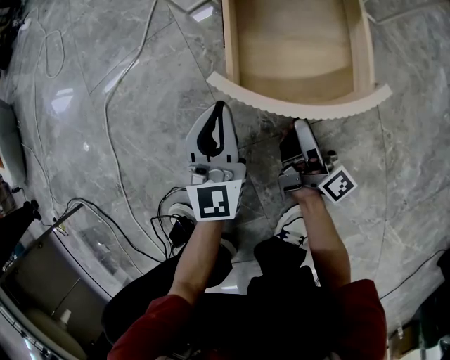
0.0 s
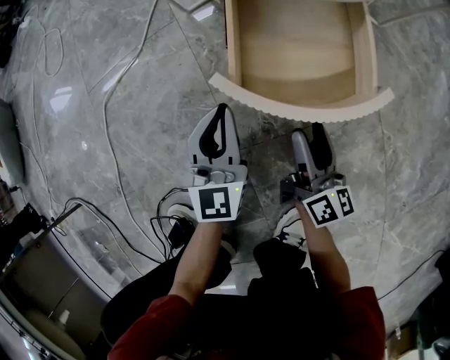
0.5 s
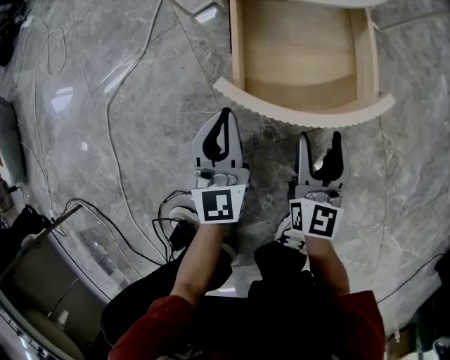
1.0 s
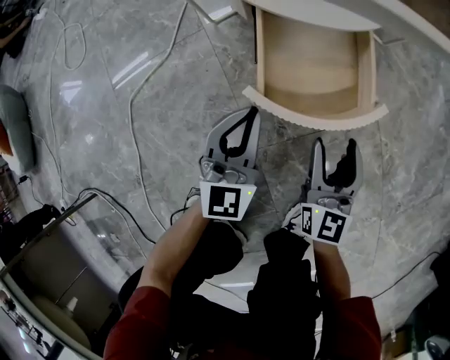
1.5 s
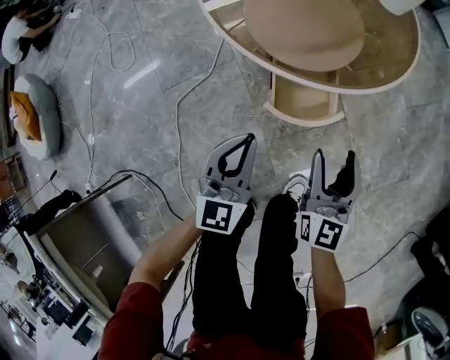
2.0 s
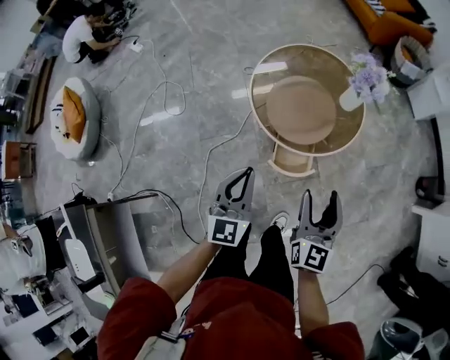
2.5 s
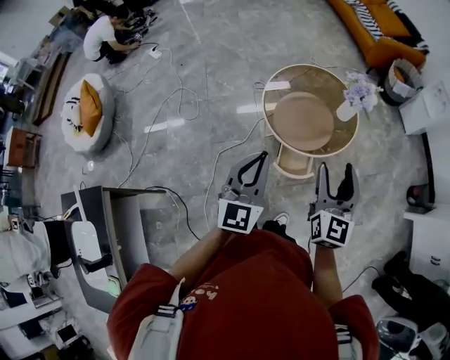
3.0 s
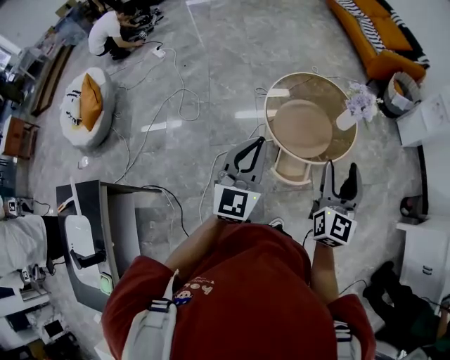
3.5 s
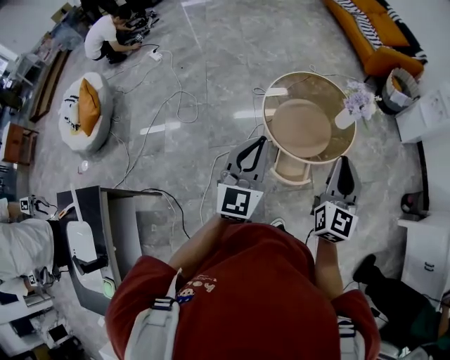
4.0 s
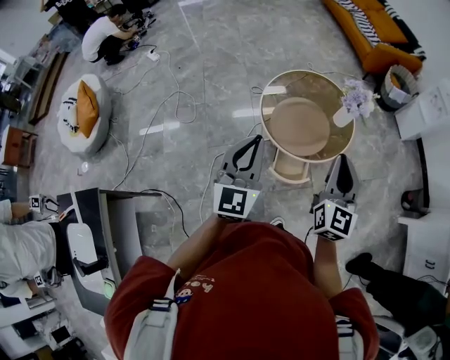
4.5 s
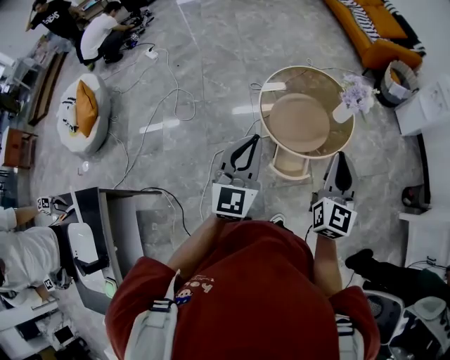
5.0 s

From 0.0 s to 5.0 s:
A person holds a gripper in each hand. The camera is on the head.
From 0.0 s to 2.5 s: The two grippers go roughly 70 cm upward. The right gripper twists about 70 degrees counterclockwise, seen from behind.
From 2.5 s to 5.0 s: The grippers both shift upward by approximately 20 cm. The right gripper closes its fingers.

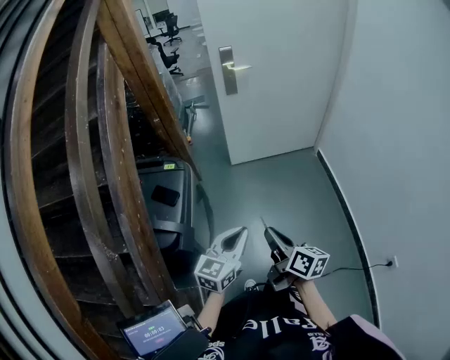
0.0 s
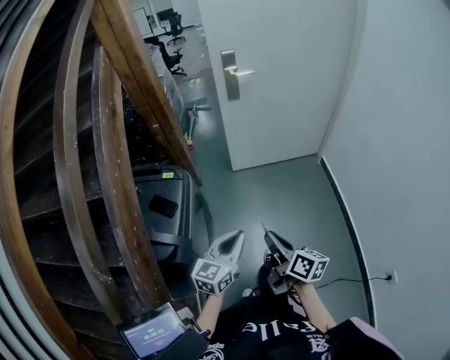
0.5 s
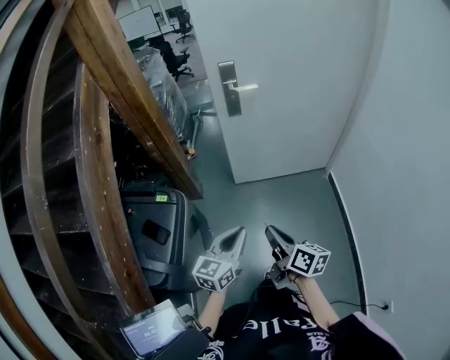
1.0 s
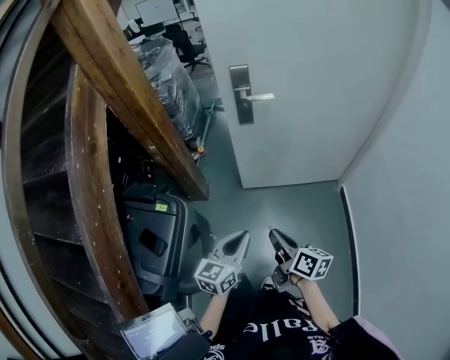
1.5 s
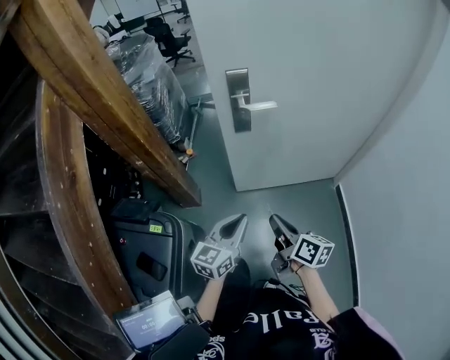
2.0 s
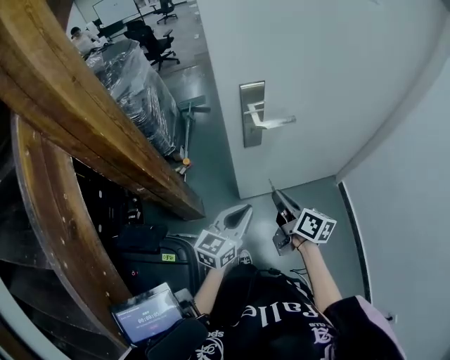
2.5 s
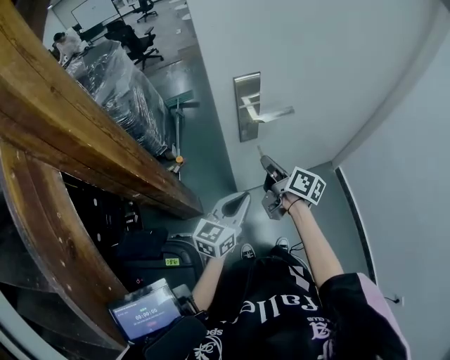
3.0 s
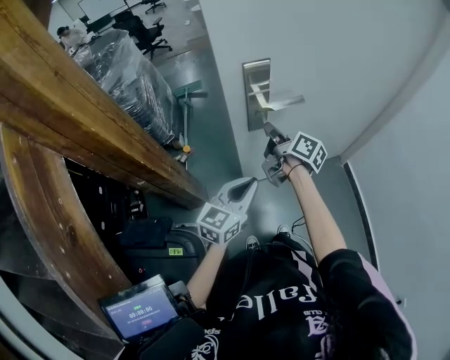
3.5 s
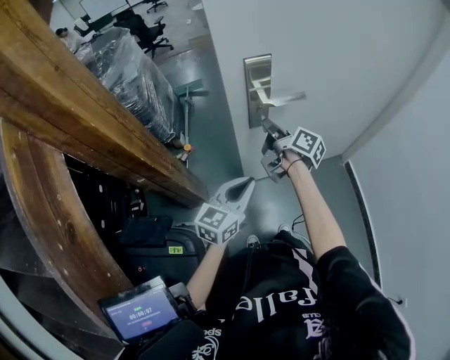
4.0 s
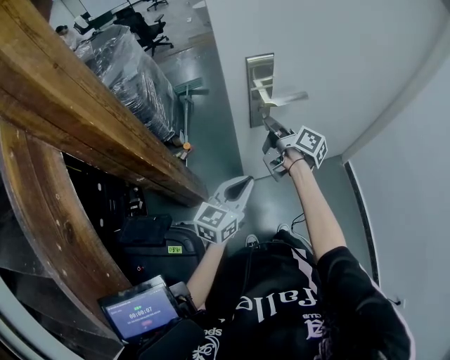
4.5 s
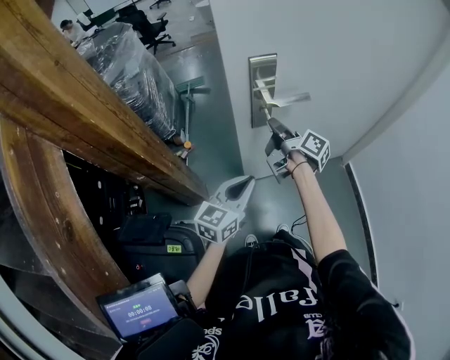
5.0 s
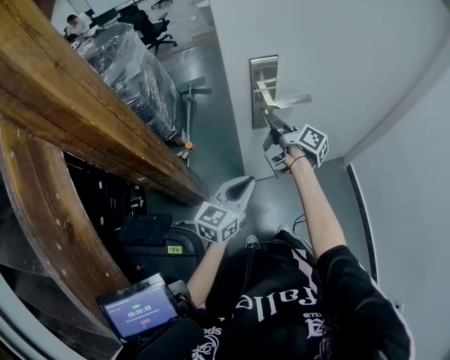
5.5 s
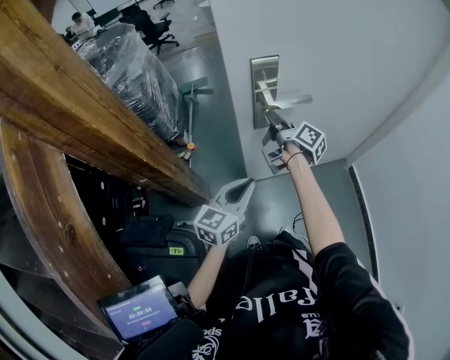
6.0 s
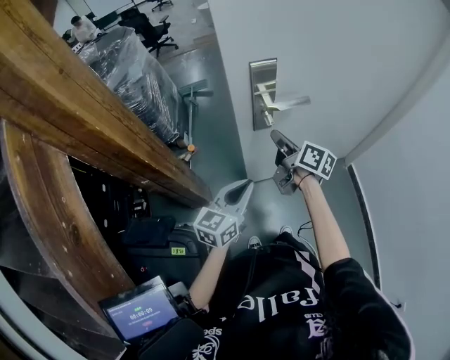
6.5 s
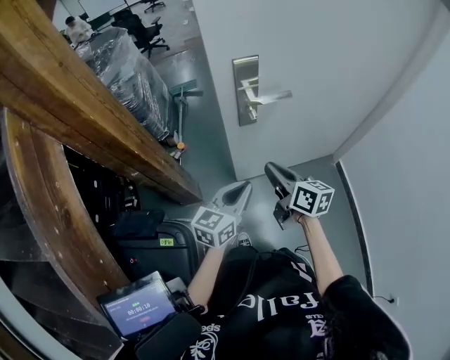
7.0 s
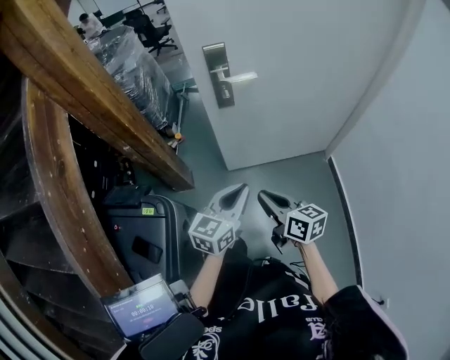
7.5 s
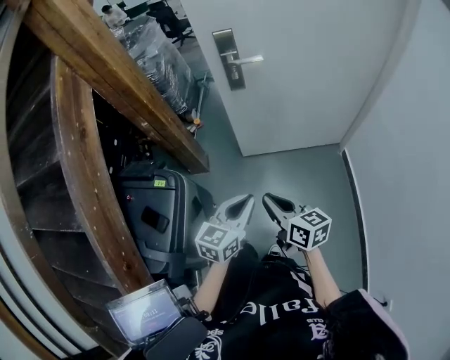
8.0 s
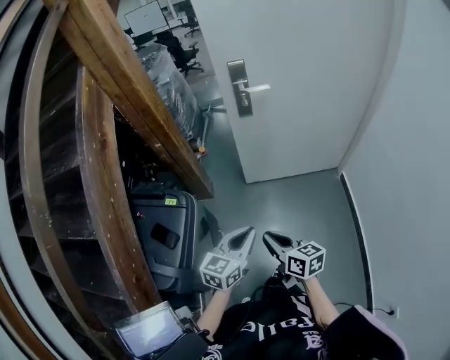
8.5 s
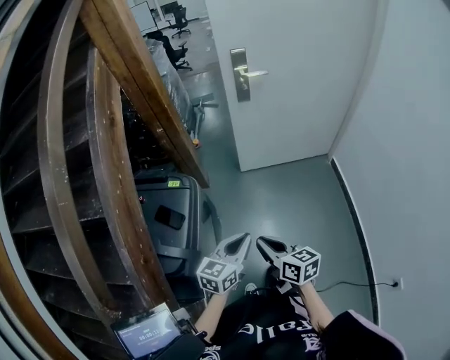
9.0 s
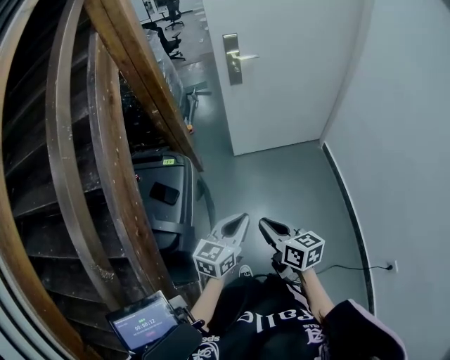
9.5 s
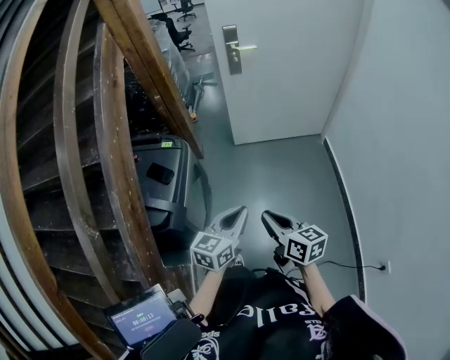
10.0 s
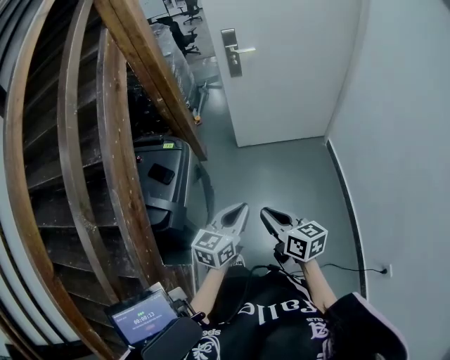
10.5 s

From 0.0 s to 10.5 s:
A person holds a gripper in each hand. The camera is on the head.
From 0.0 s to 2.0 s: Both grippers are carried forward, some 50 cm.
From 2.0 s to 4.0 s: The right gripper is displaced forward and to the left by roughly 35 cm, and changes its angle by some 20 degrees; the left gripper is displaced forward and to the left by approximately 20 cm.
From 4.0 s to 6.5 s: The grippers make only small movements.
From 6.5 s to 8.5 s: The two grippers travel together, backward, some 50 cm. The right gripper changes its angle by approximately 30 degrees.
From 8.5 s to 10.5 s: The grippers both shift backward by some 25 cm.

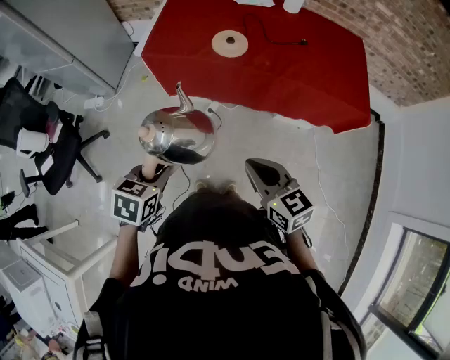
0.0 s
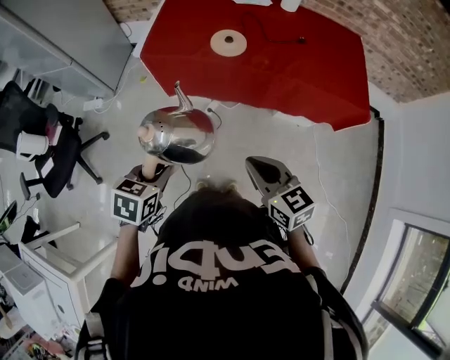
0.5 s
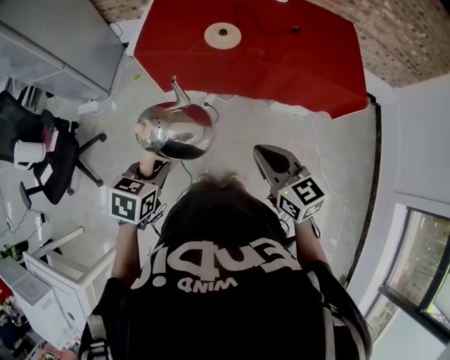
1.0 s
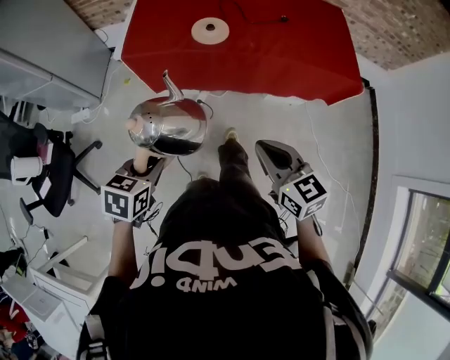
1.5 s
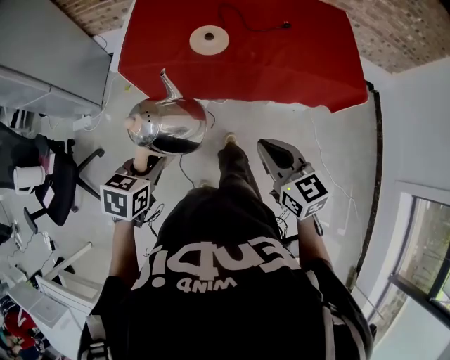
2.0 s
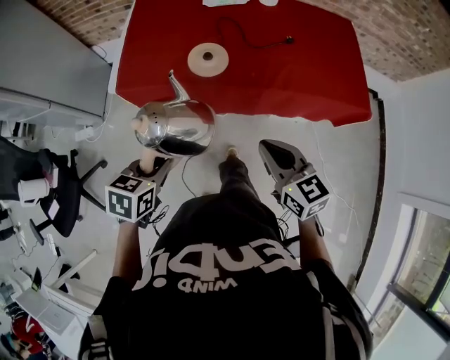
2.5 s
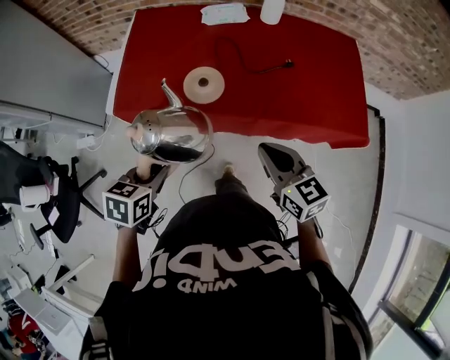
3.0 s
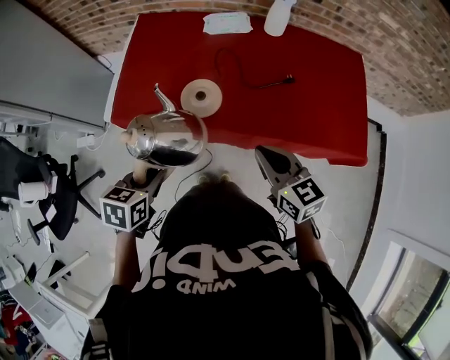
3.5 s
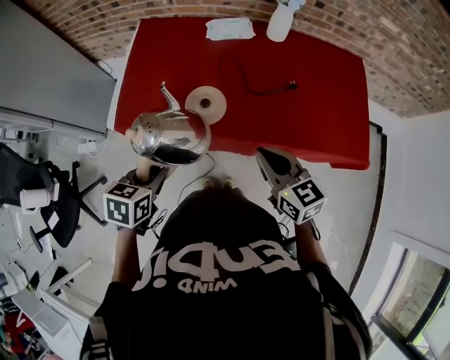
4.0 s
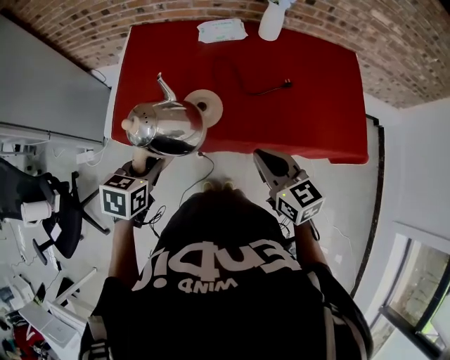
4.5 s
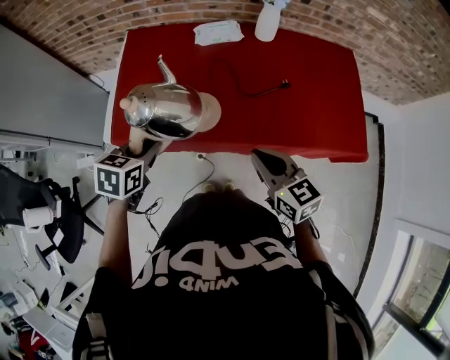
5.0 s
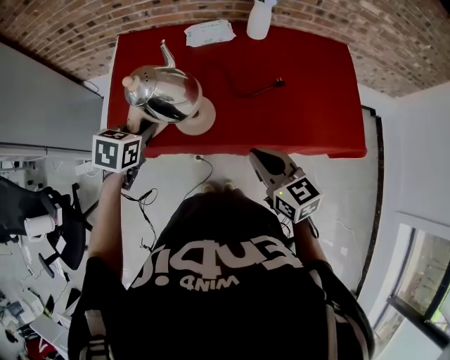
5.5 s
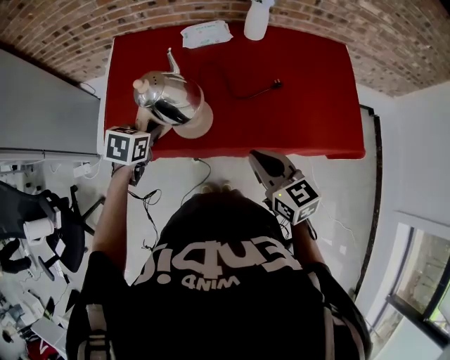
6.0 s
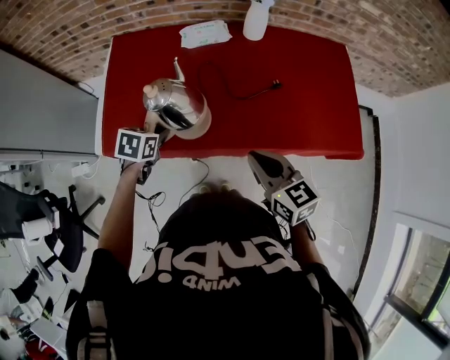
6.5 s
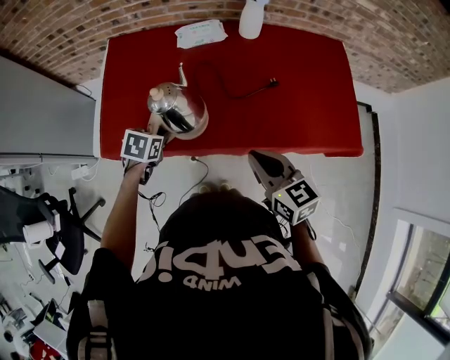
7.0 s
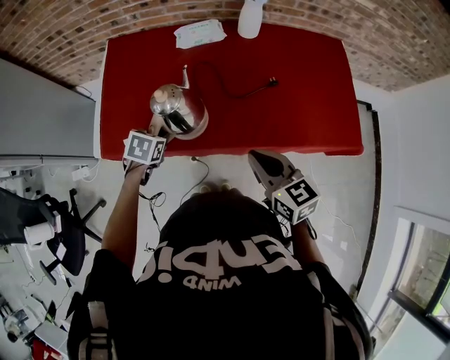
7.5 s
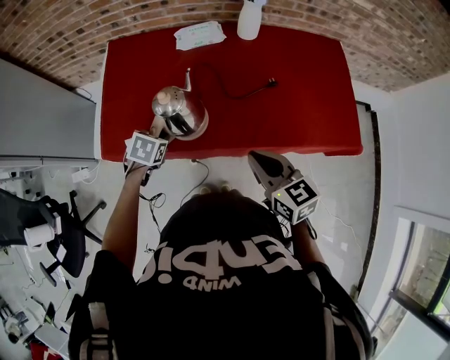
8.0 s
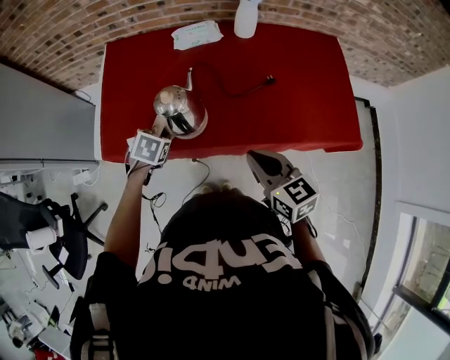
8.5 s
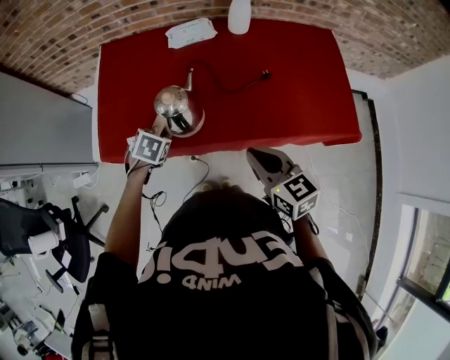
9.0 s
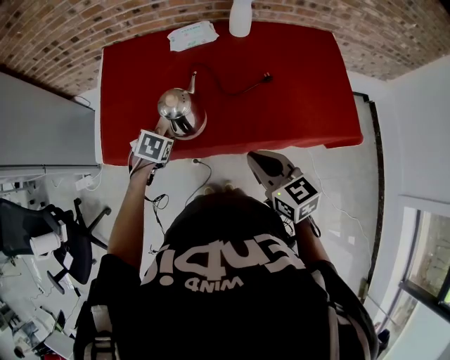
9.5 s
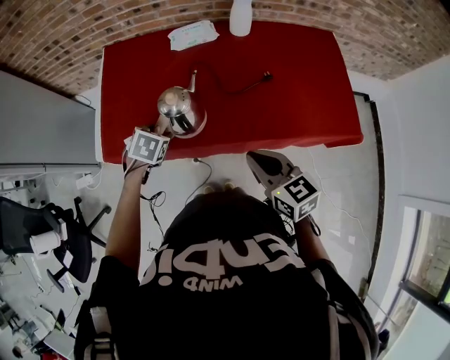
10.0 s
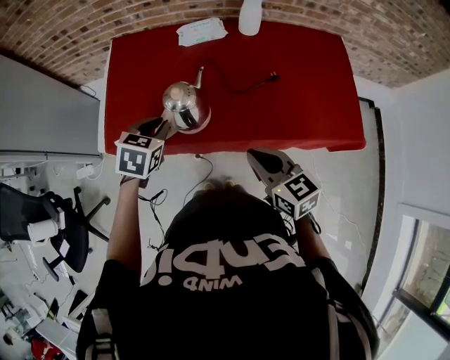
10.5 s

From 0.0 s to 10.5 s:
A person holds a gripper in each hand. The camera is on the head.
From 0.0 s to 2.0 s: The two grippers go about 10 cm forward.
From 2.0 s to 4.0 s: Both grippers move forward, some 25 cm.
From 4.0 s to 6.5 s: The left gripper is displaced forward and downward by approximately 20 cm.
From 6.5 s to 8.5 s: There are only small adjustments of the grippers.
From 8.5 s to 10.5 s: The left gripper travels upward by some 10 cm, and opens and closes again.

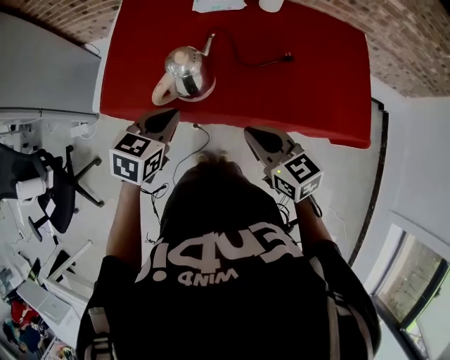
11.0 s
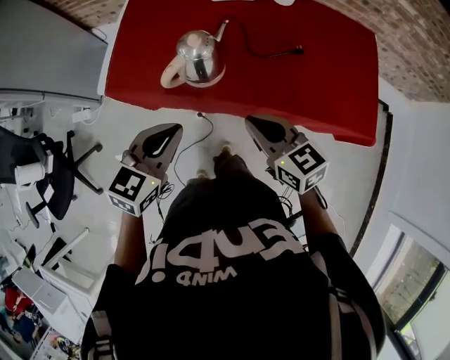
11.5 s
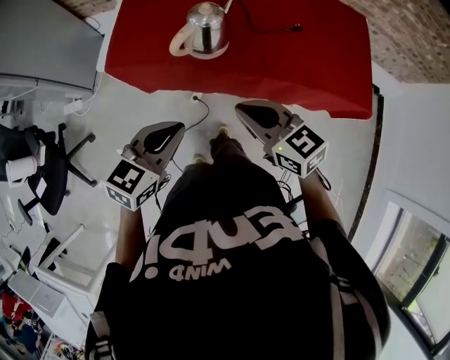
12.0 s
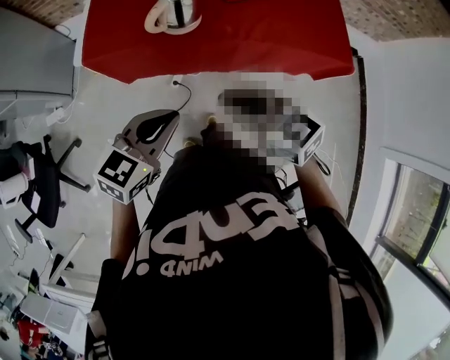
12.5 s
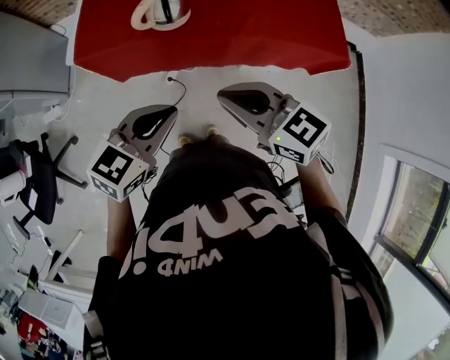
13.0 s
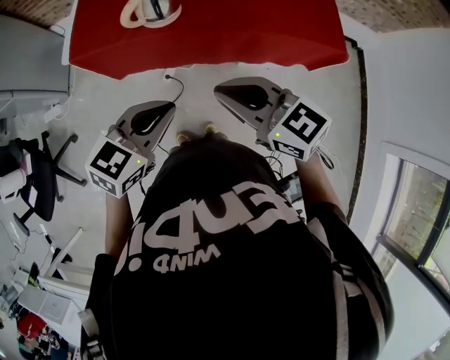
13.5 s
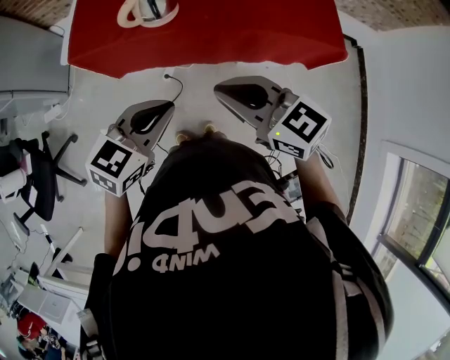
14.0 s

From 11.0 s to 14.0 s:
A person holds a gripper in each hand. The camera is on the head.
From 11.0 s to 12.5 s: The right gripper goes some 20 cm backward and to the left. Meanwhile the left gripper is displaced backward by some 25 cm, and changes its angle by about 20 degrees.
From 12.5 s to 14.0 s: Both grippers move to the right, roughly 5 cm.
